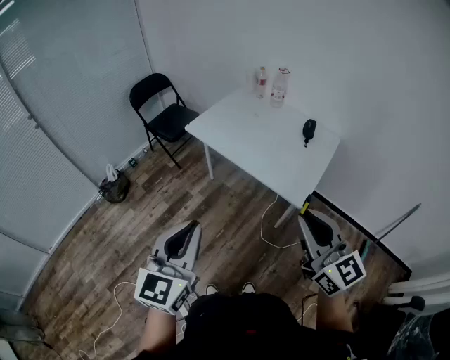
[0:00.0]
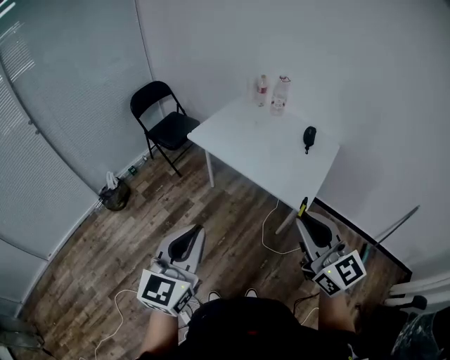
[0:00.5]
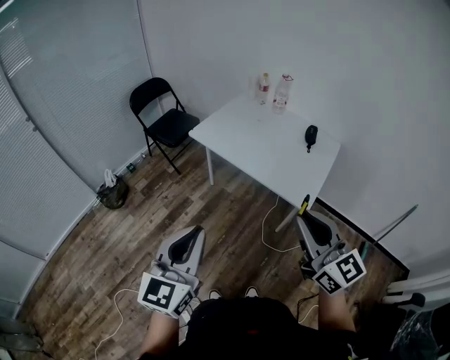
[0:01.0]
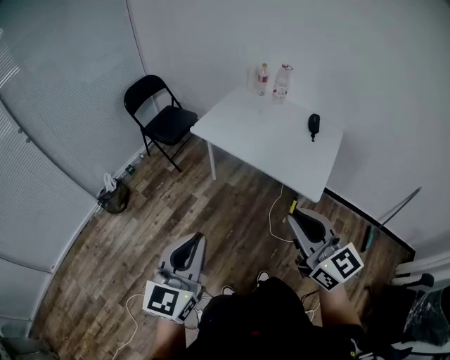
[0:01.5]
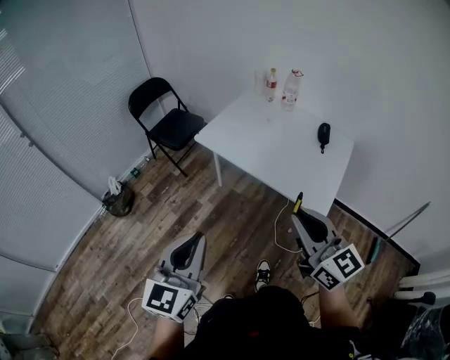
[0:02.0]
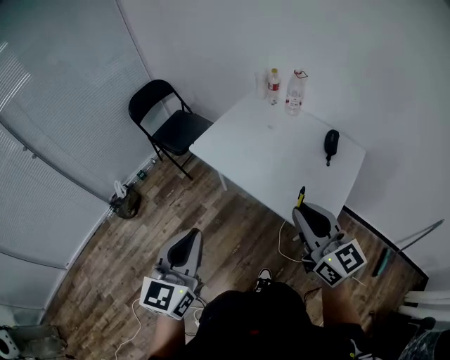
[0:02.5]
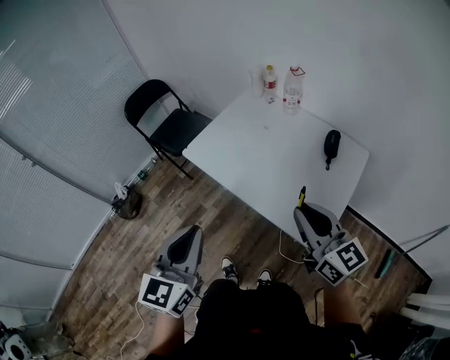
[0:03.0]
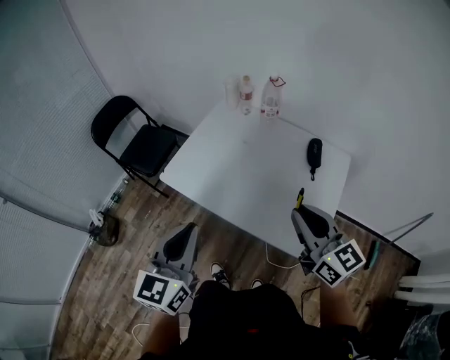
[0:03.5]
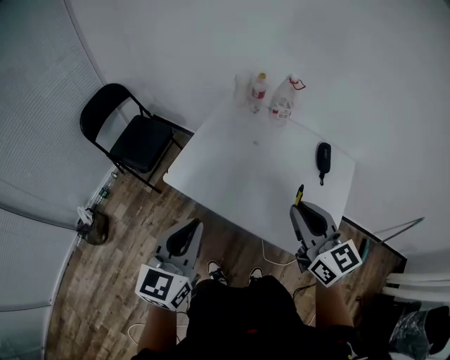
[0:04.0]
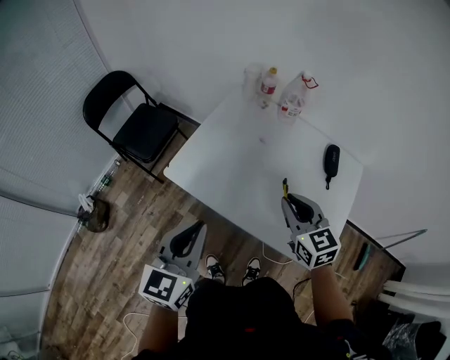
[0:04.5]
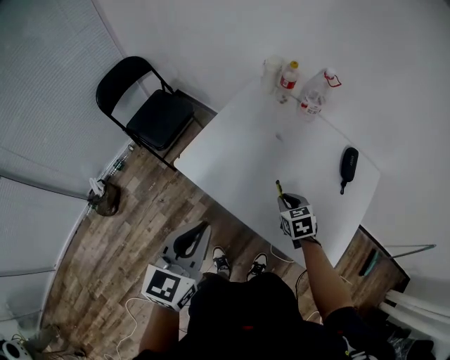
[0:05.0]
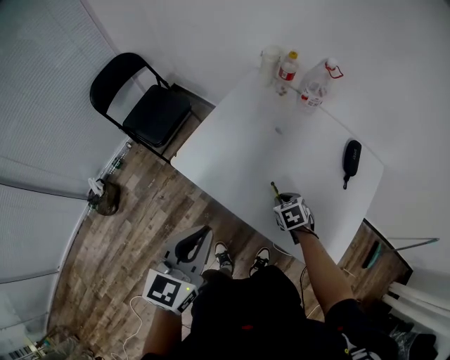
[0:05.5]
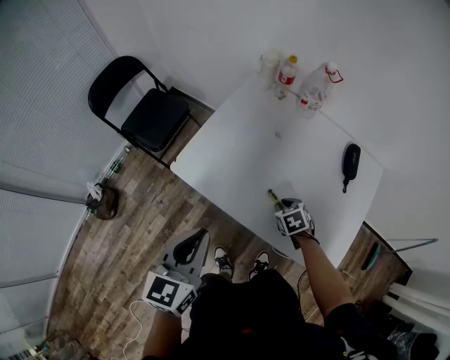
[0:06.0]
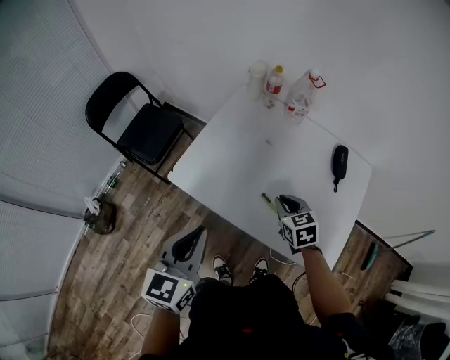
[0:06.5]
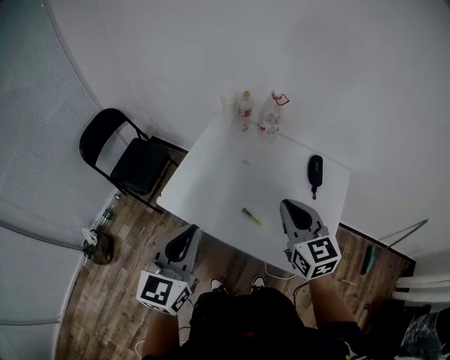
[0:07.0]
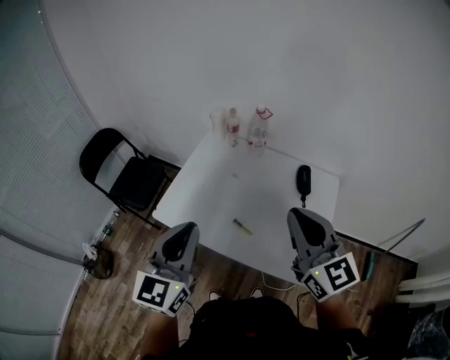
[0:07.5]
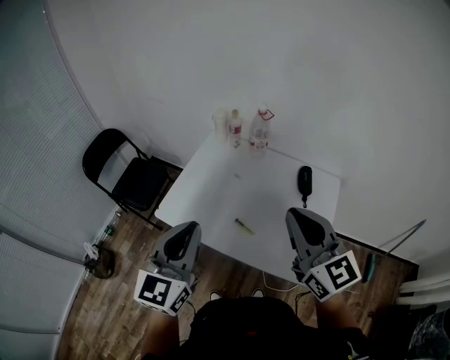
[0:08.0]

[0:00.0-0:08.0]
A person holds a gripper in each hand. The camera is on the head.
0:00.0 to 0:02.0: The right gripper shifts about 15 cm forward and to the left, while the left gripper is displaced to the left and forward by about 15 cm.
0:02.0 to 0:04.0: The grippers both shift forward by approximately 35 cm.
0:04.0 to 0:06.0: The left gripper goes roughly 10 cm downward. The right gripper is displaced downward by some 35 cm, and angles its fingers downward, by about 60 degrees.
0:06.0 to 0:08.0: The right gripper goes approximately 50 cm upward, and tips its fingers upward by approximately 70 degrees. Meanwhile the left gripper moves upward and to the right, about 20 cm, and swivels roughly 20 degrees.

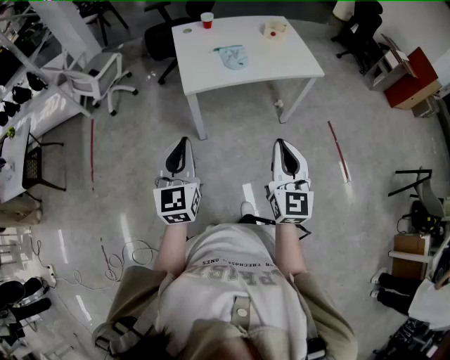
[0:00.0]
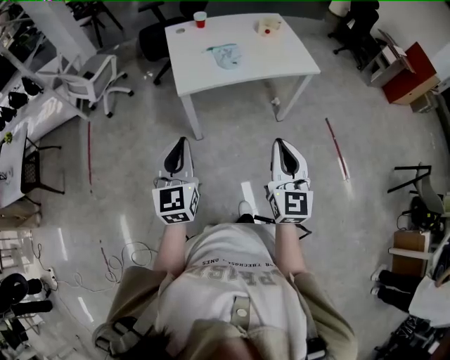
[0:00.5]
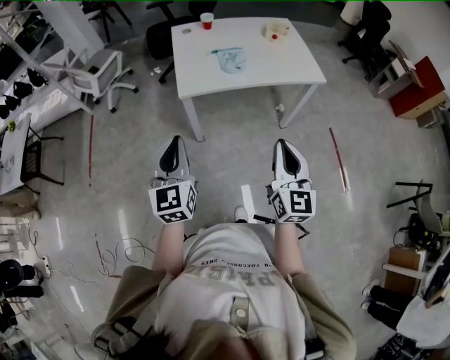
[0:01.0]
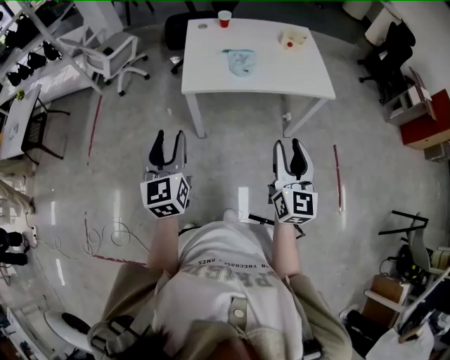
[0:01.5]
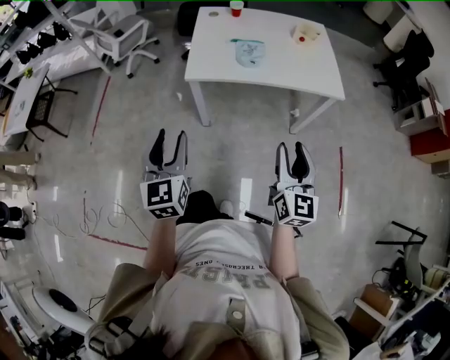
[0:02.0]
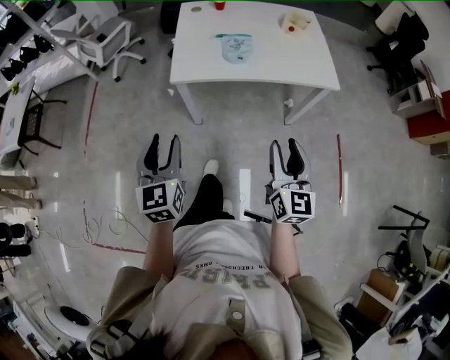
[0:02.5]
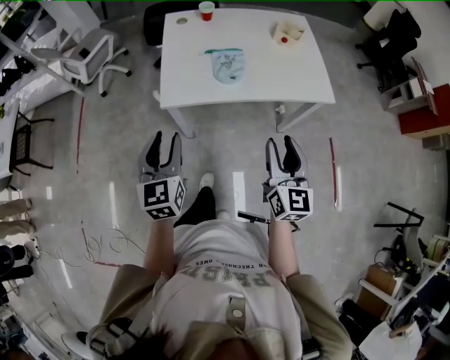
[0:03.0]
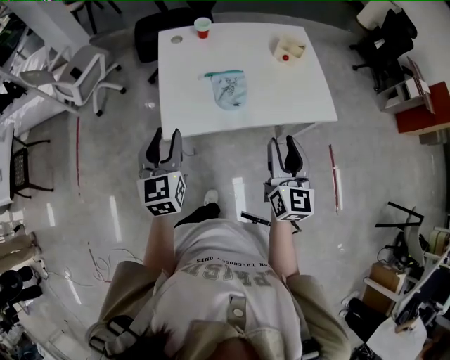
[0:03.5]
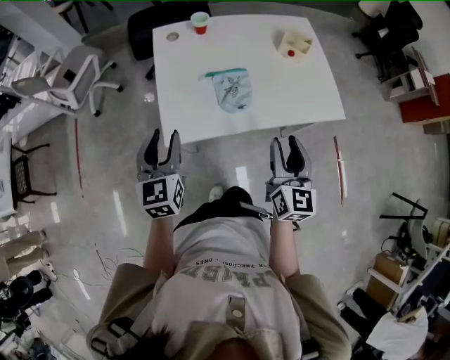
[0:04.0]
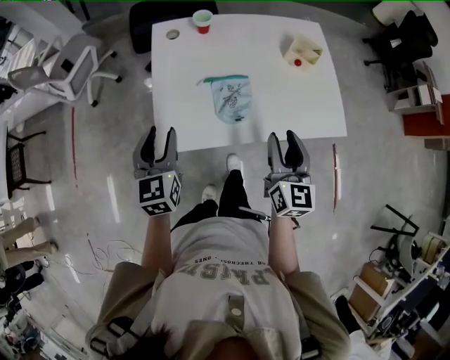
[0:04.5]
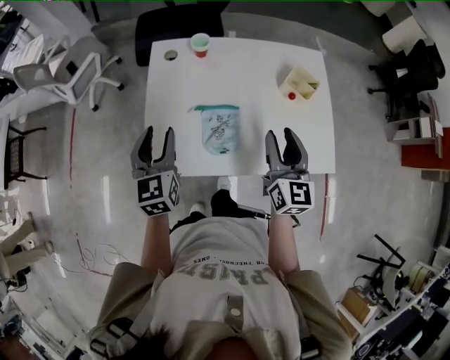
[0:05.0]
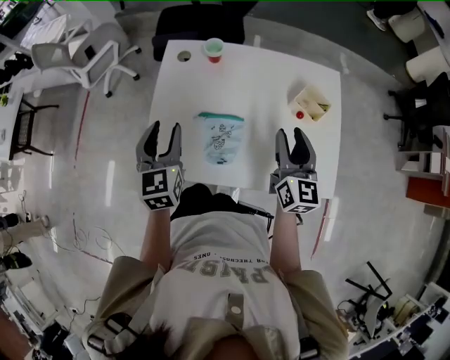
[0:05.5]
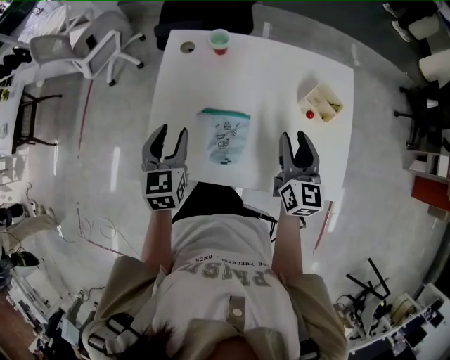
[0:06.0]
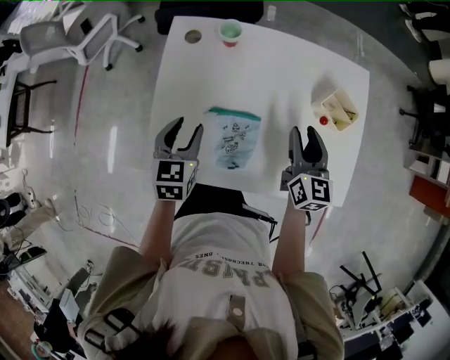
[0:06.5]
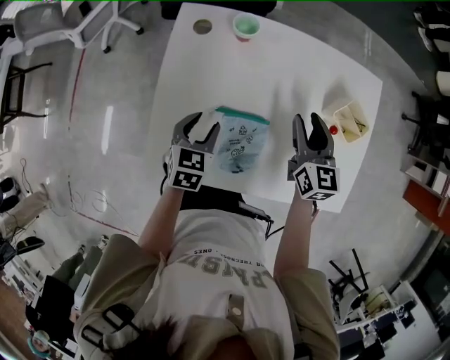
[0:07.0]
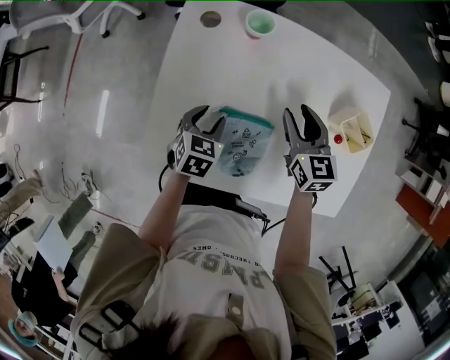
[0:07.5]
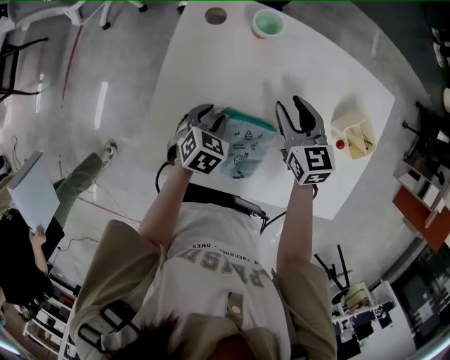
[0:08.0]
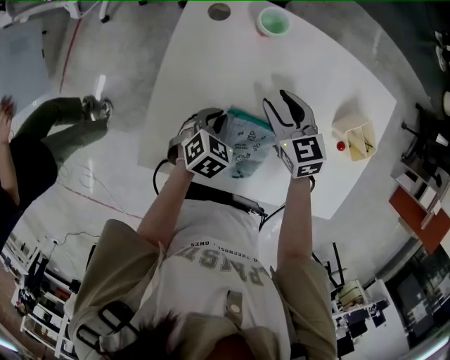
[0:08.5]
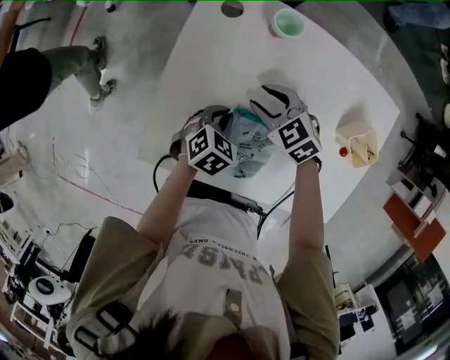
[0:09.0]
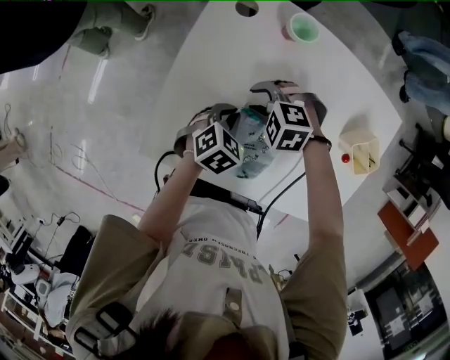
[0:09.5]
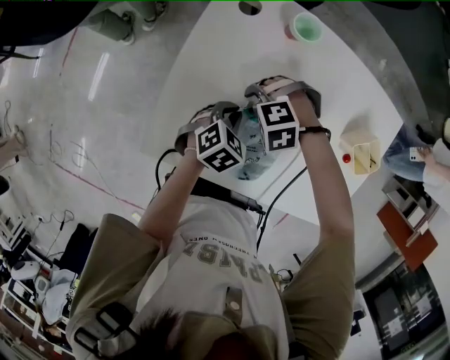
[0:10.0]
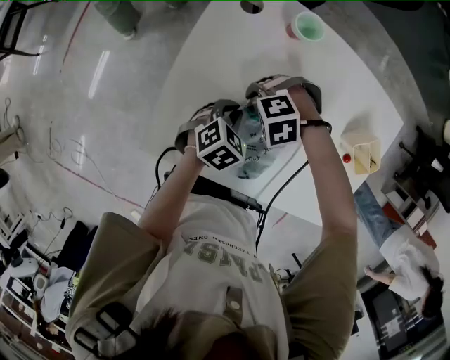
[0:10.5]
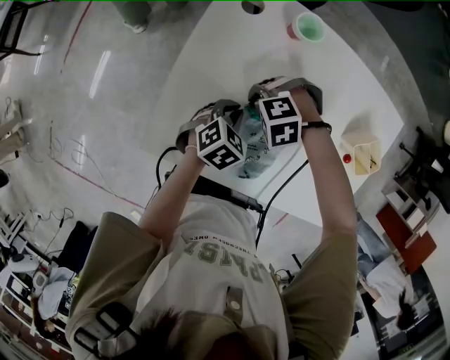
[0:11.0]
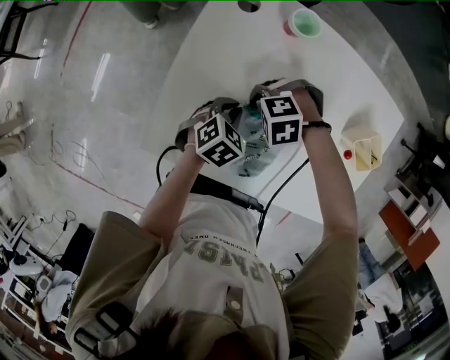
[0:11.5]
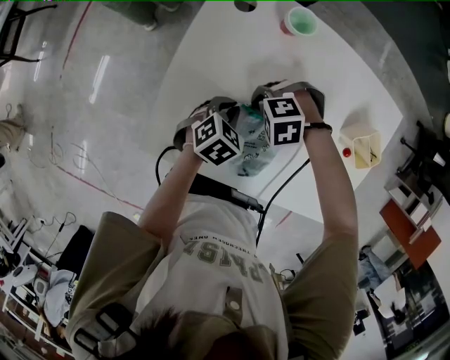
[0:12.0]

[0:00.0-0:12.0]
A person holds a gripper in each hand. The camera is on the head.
0:00.0 to 0:02.0: The right gripper heads to the right and forward, covering roughly 15 cm, and opens up. The left gripper travels to the right by some 10 cm, turns by some 20 degrees, and opens.
0:02.0 to 0:04.0: The grippers both shift forward by about 35 cm.
0:04.0 to 0:06.0: The left gripper goes roughly 20 cm forward and to the right; the right gripper moves forward and to the right, about 30 cm.
0:06.0 to 0:08.0: The right gripper travels forward, downward and to the left by roughly 25 cm, and rotates some 30 degrees, while the left gripper is displaced downward by roughly 20 cm, and points its fingers about 30 degrees further downward.
0:08.0 to 0:10.0: The right gripper changes place by about 20 cm, and tilts its fingers roughly 40 degrees downward; the left gripper closes.
0:10.0 to 0:12.0: The right gripper closes.

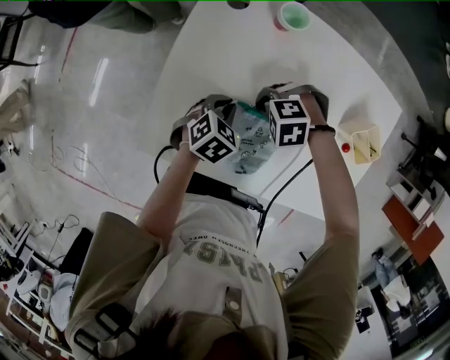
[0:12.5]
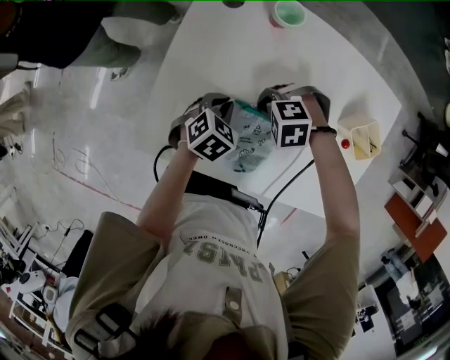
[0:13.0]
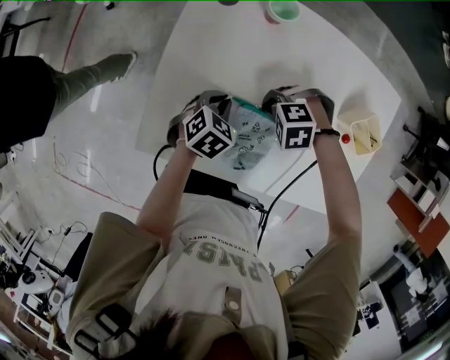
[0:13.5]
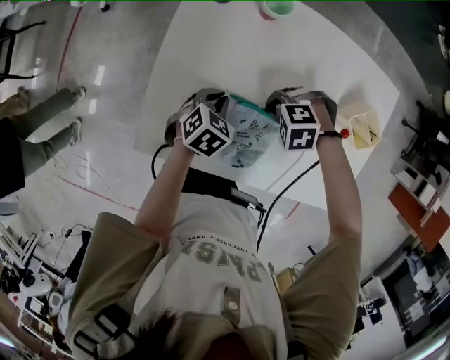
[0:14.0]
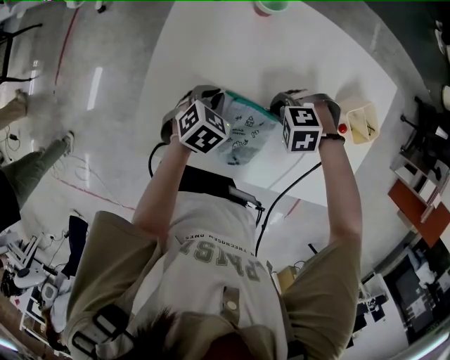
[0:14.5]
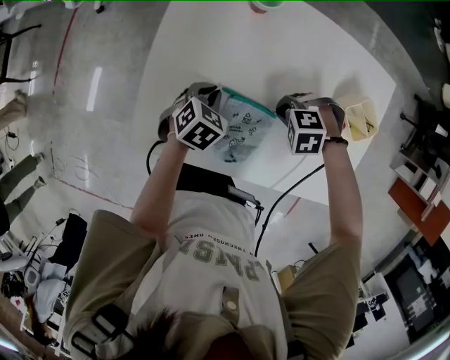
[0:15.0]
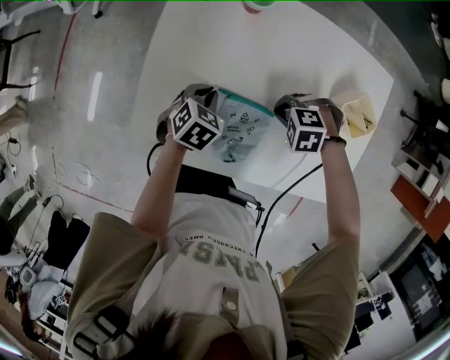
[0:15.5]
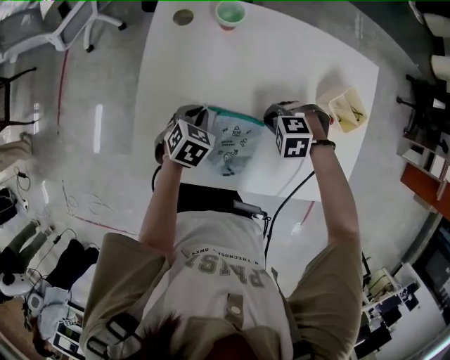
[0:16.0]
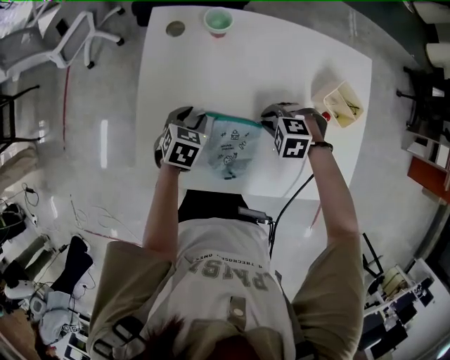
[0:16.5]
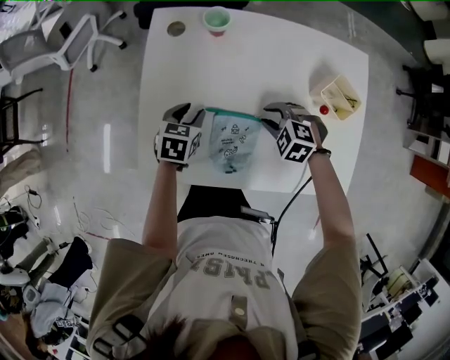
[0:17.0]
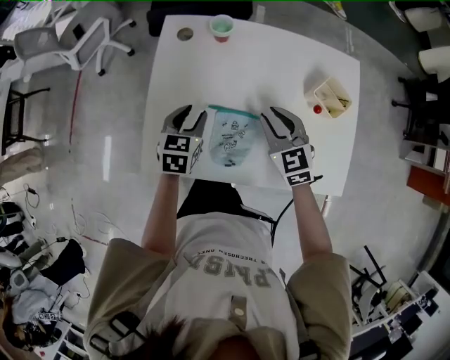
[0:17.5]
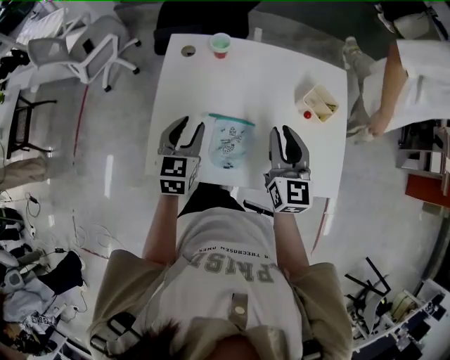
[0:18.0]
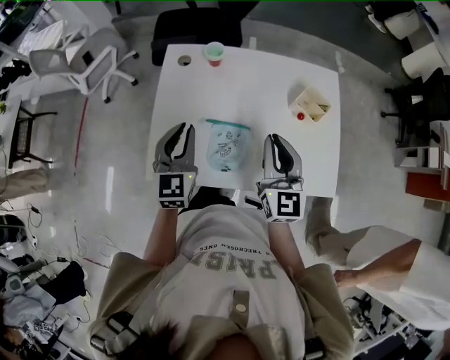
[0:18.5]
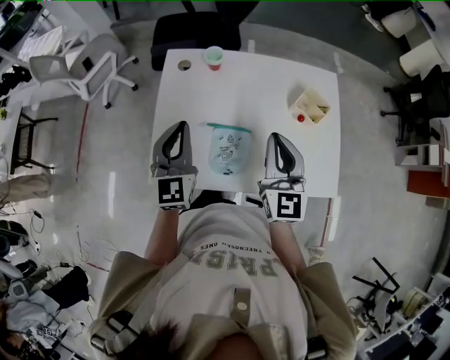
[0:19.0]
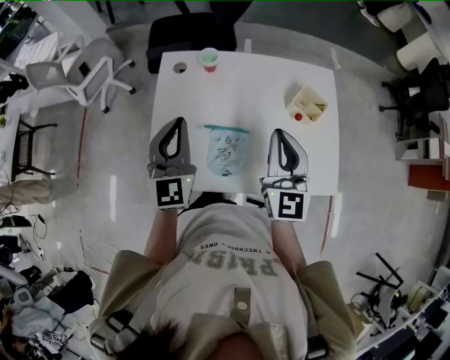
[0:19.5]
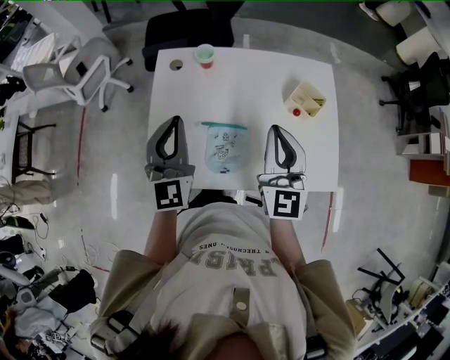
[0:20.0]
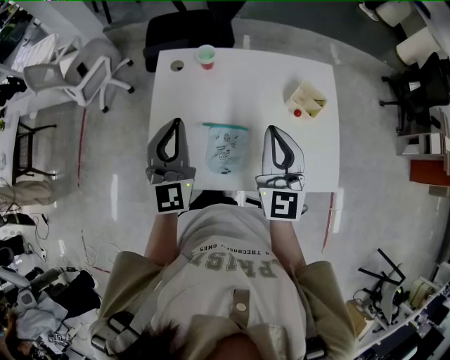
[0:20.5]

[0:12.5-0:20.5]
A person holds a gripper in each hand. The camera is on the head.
0:12.5 to 0:14.5: The right gripper moves roughly 10 cm.
0:14.5 to 0:16.5: The right gripper swivels some 20 degrees. The left gripper opens.
0:16.5 to 0:18.5: The two grippers go approximately 30 cm upward. The right gripper points its fingers some 70 degrees further upward; the left gripper points its fingers some 40 degrees further upward, and closes its fingers.
0:18.5 to 0:20.5: The grippers both shift upward by roughly 5 cm.
